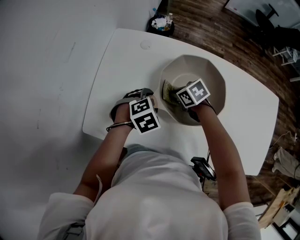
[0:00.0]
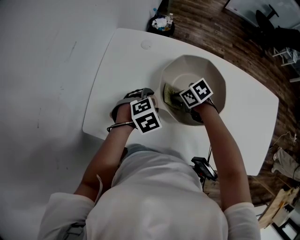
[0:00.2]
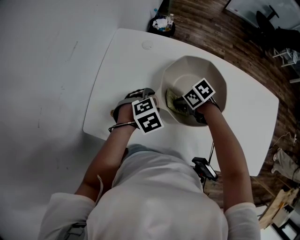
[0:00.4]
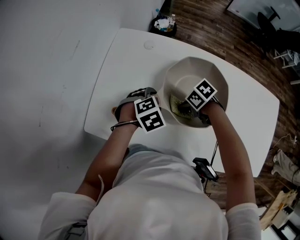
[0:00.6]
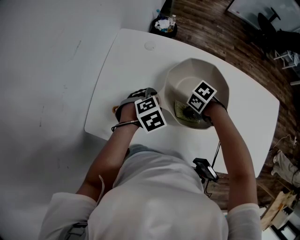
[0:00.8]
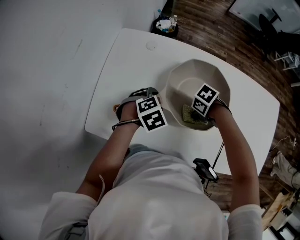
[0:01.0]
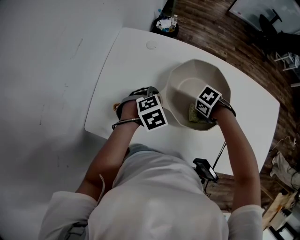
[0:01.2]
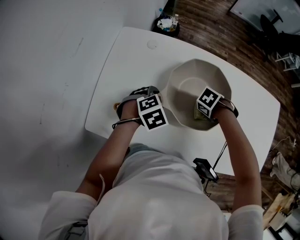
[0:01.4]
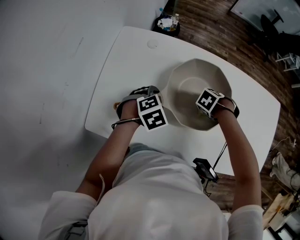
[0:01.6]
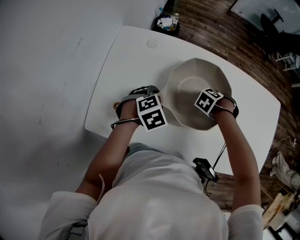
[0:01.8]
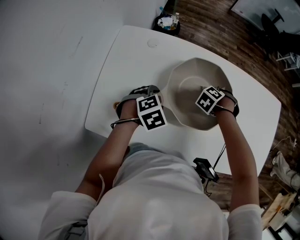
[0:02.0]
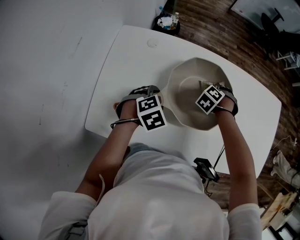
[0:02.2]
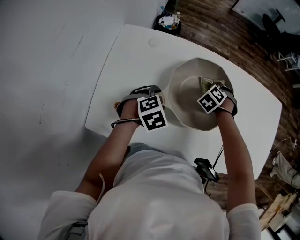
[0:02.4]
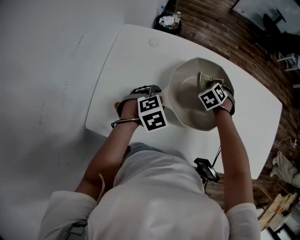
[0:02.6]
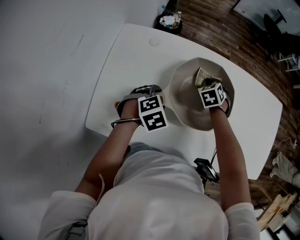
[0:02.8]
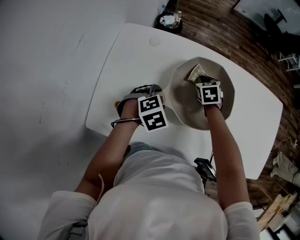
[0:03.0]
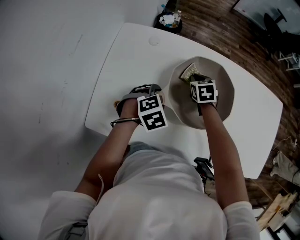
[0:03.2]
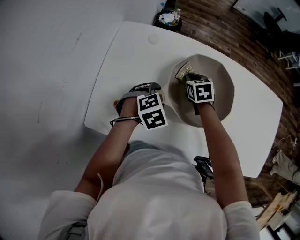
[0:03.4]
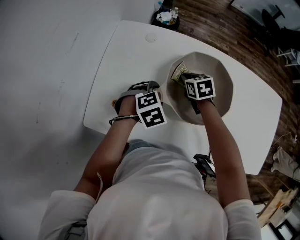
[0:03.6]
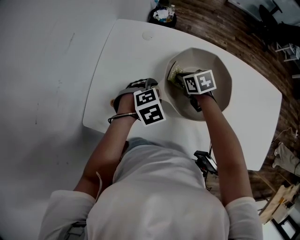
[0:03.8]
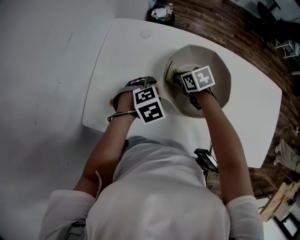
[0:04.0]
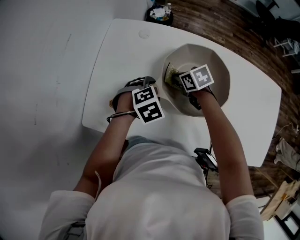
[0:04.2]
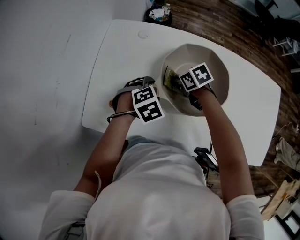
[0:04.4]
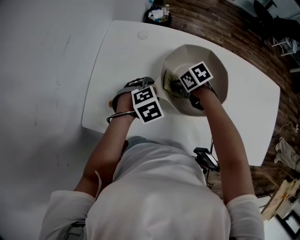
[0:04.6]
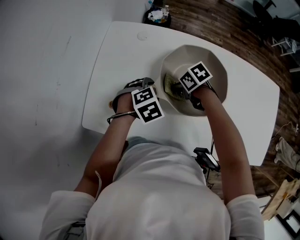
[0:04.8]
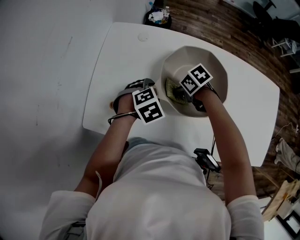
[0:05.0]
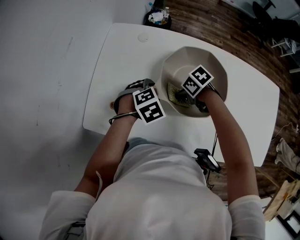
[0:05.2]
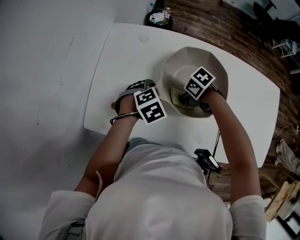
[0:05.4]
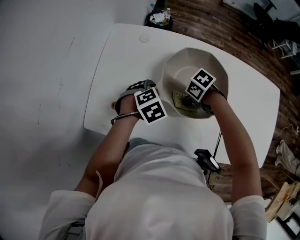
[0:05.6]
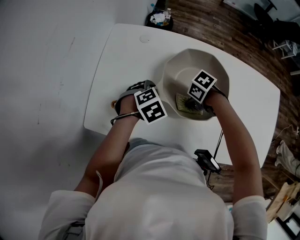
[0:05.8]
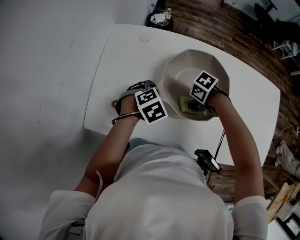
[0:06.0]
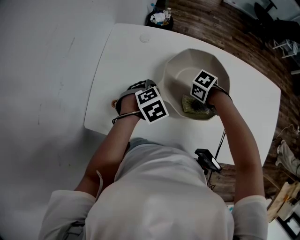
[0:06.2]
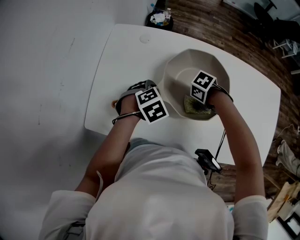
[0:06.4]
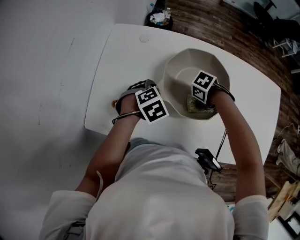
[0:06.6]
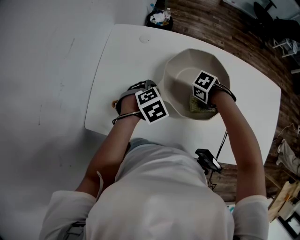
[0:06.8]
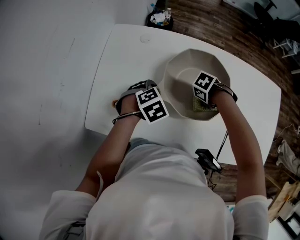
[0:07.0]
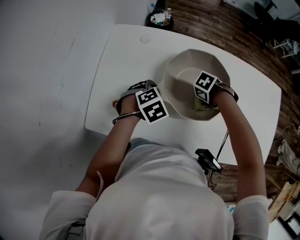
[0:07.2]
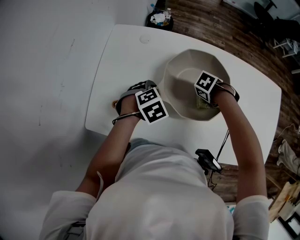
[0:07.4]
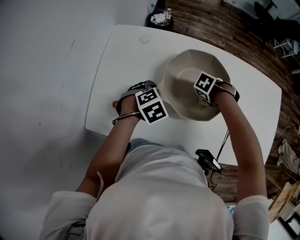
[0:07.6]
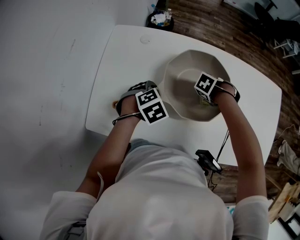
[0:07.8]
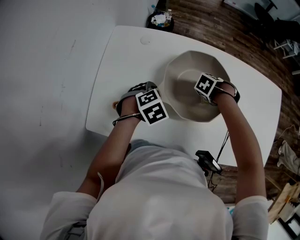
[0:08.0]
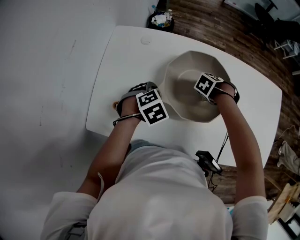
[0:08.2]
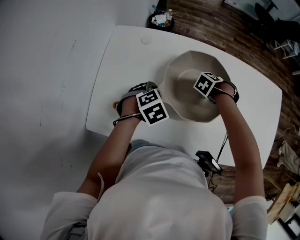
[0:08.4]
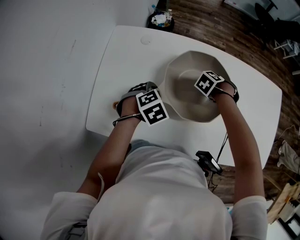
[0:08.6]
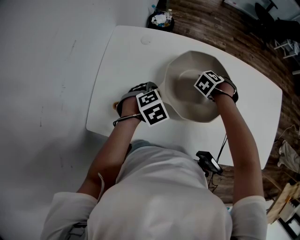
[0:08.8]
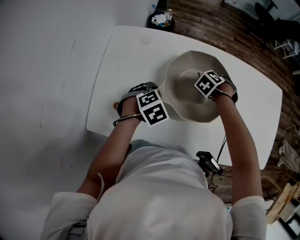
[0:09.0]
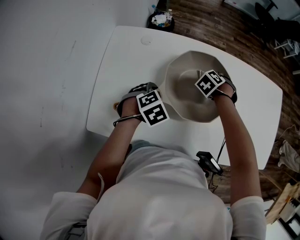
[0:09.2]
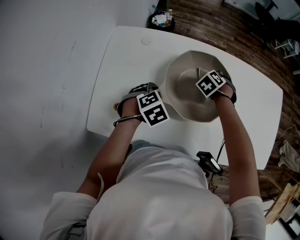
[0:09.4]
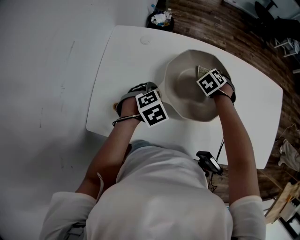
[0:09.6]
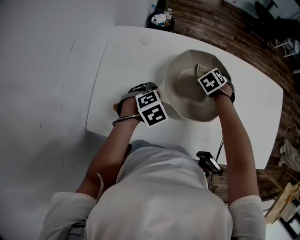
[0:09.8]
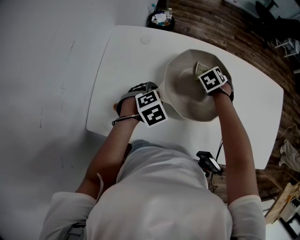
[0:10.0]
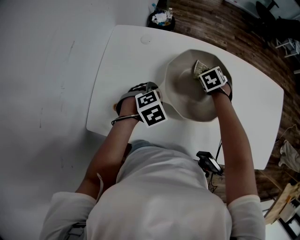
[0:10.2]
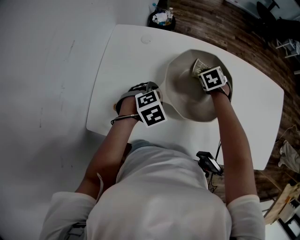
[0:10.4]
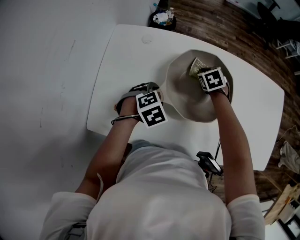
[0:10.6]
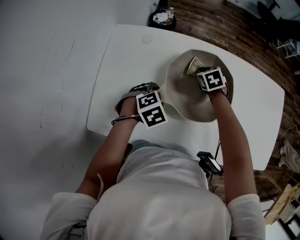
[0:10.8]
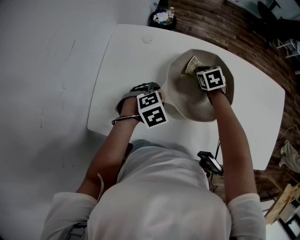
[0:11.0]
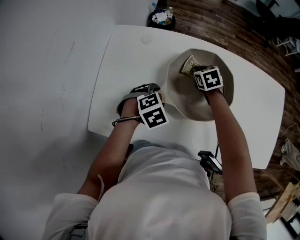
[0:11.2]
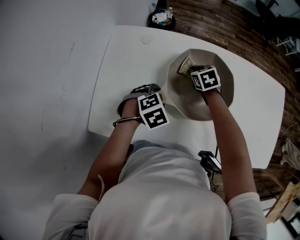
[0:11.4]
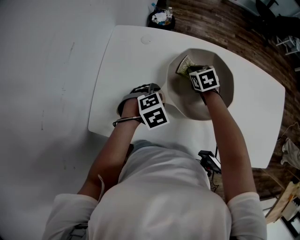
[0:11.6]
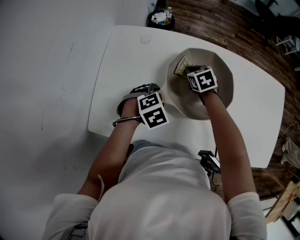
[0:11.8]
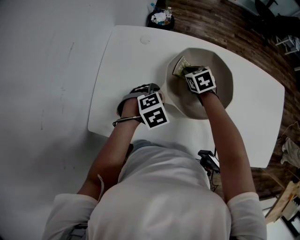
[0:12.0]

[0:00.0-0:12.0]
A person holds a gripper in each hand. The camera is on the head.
0:00.0 to 0:01.6: The right gripper moves about 15 cm, and rotates approximately 50 degrees.
0:01.6 to 0:03.0: The right gripper moves roughly 15 cm, and swivels about 60 degrees.
0:03.0 to 0:04.4: The right gripper shifts by approximately 15 cm, and swivels roughly 40 degrees.
0:04.4 to 0:06.0: The right gripper shifts by some 15 cm, and turns by approximately 40 degrees.
0:06.0 to 0:07.6: The right gripper changes place by roughly 10 cm, and changes its angle by approximately 30 degrees.
0:07.6 to 0:09.0: The right gripper shifts by about 10 cm, and swivels some 30 degrees.
0:09.0 to 0:10.4: The right gripper changes place by about 5 cm, and turns by approximately 30 degrees.
0:10.4 to 0:12.0: The right gripper shifts roughly 10 cm to the left.

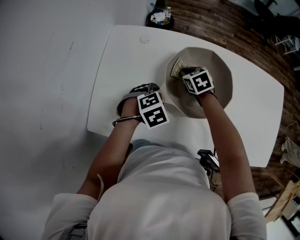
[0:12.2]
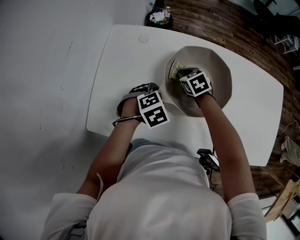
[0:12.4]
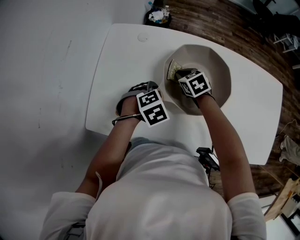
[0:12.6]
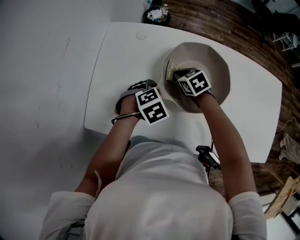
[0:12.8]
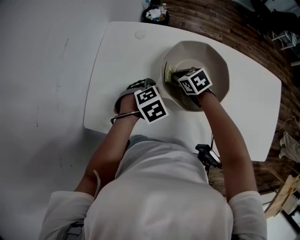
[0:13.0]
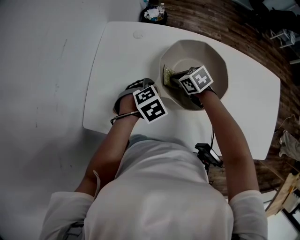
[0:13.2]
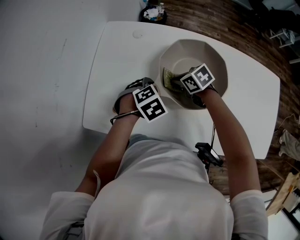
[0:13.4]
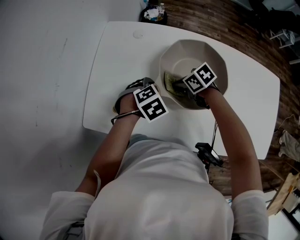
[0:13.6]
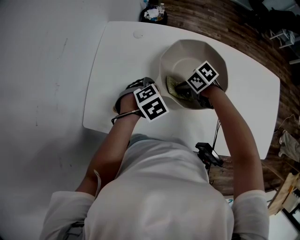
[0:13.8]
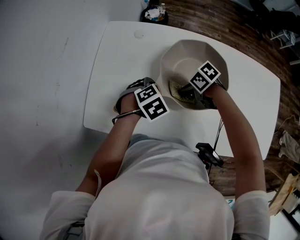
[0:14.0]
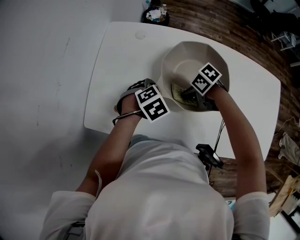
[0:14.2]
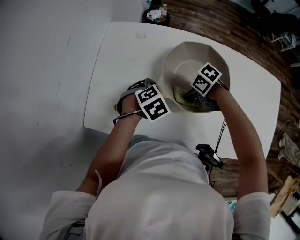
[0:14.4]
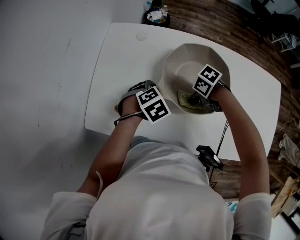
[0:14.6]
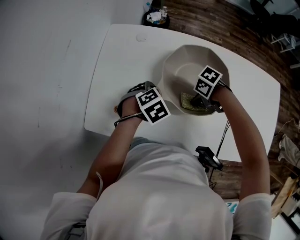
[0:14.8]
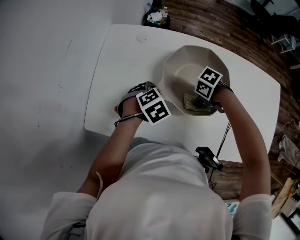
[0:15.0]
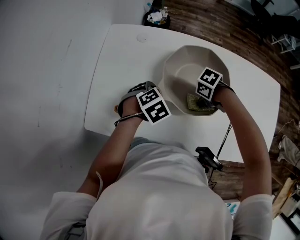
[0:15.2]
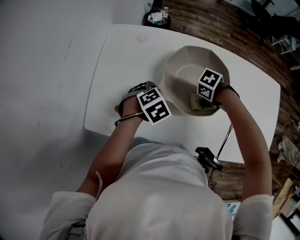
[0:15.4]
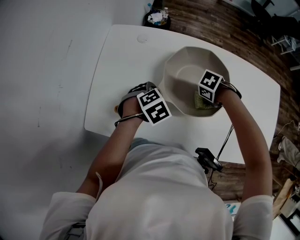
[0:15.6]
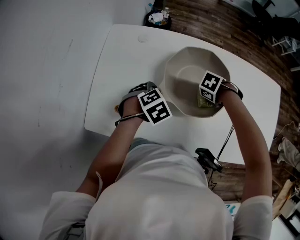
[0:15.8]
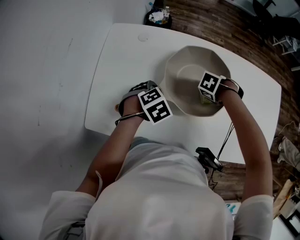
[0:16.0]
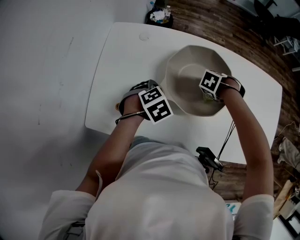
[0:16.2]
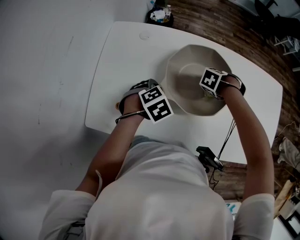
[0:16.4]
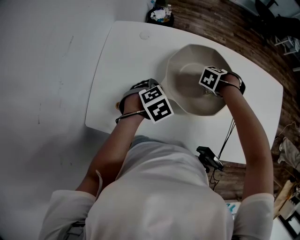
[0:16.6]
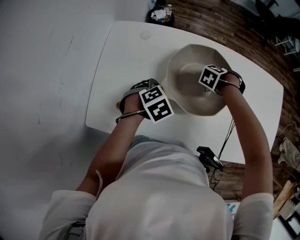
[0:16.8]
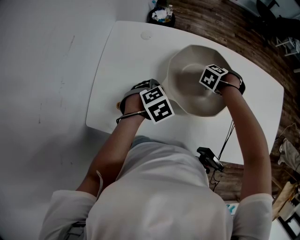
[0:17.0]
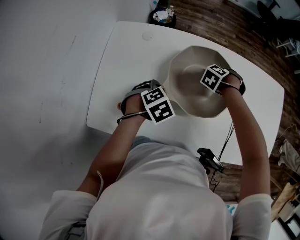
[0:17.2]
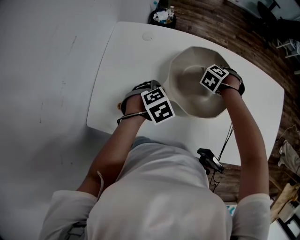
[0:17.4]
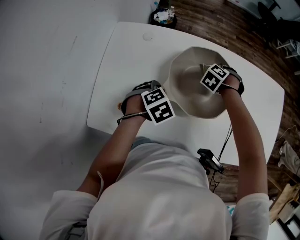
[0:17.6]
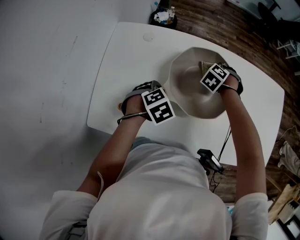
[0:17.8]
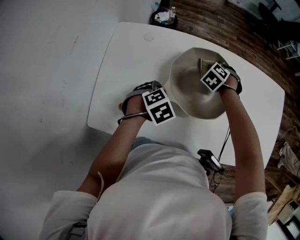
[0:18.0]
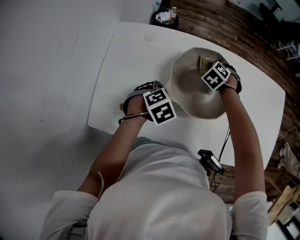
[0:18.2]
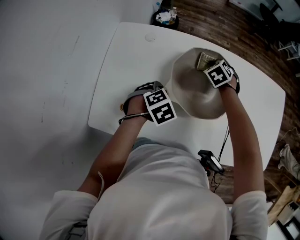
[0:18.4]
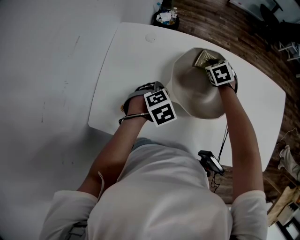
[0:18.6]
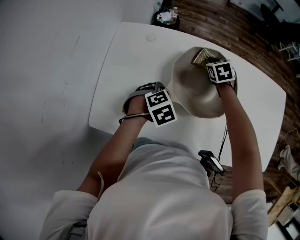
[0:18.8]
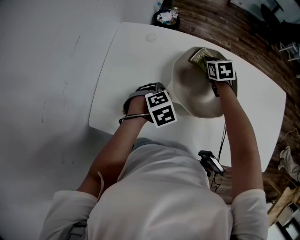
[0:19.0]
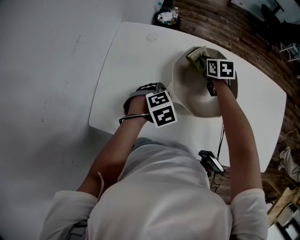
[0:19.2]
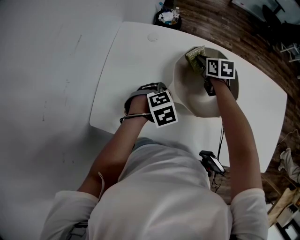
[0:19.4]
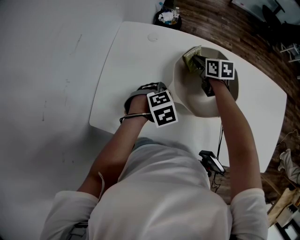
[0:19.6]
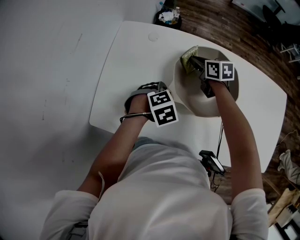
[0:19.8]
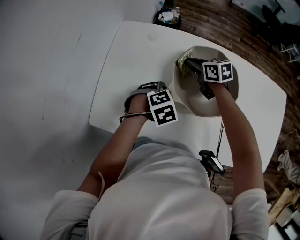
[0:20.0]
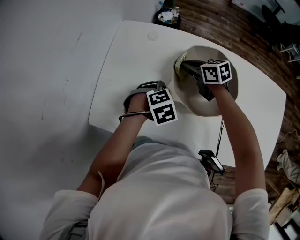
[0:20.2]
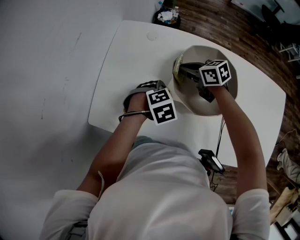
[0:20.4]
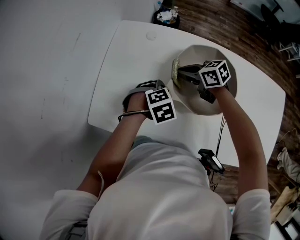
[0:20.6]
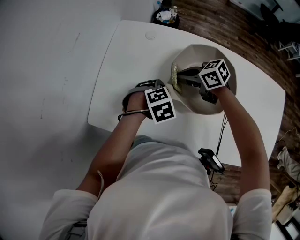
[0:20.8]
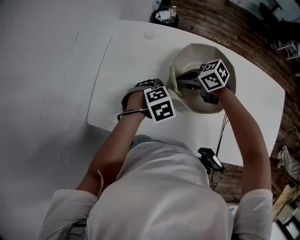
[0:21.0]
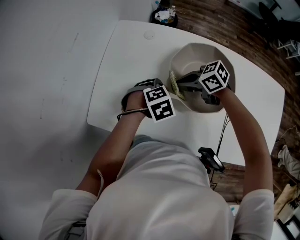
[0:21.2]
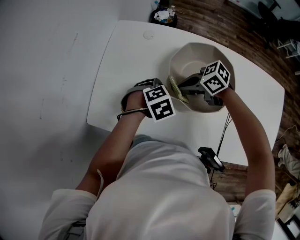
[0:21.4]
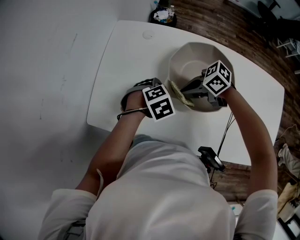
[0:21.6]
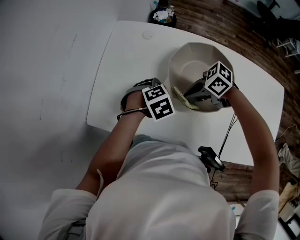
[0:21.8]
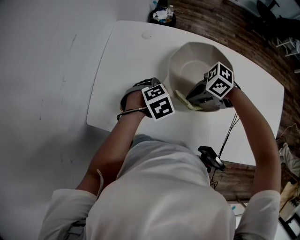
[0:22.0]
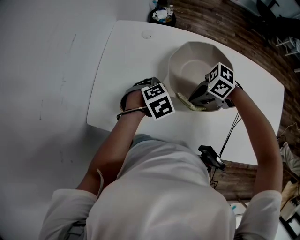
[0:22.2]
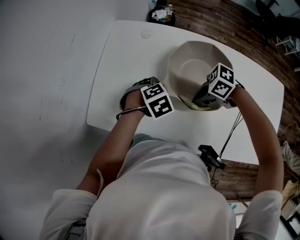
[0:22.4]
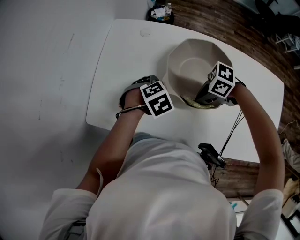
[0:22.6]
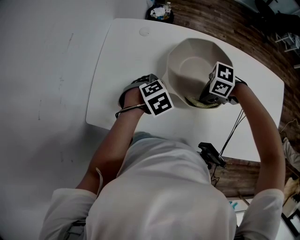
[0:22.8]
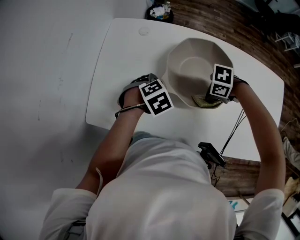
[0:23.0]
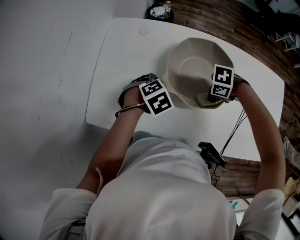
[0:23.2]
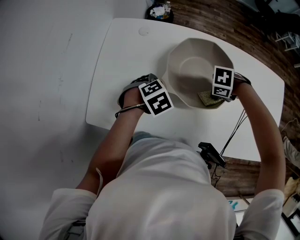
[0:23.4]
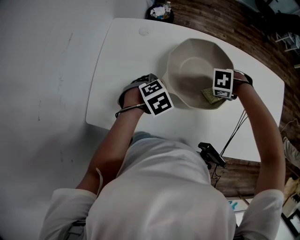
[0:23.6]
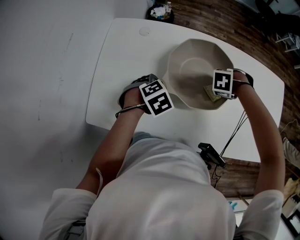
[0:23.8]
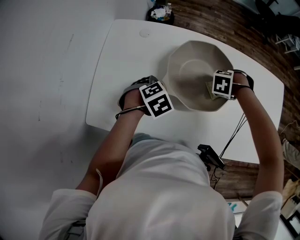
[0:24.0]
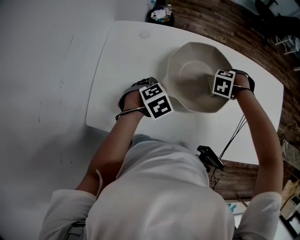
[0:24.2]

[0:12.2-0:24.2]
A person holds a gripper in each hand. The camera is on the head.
0:12.2 to 0:13.8: The right gripper changes place by some 10 cm, and turns by approximately 40 degrees.
0:13.8 to 0:15.2: The right gripper shifts by roughly 10 cm, and rotates roughly 30 degrees.
0:15.2 to 0:16.6: The right gripper moves roughly 10 cm, and turns by approximately 40 degrees.
0:16.6 to 0:18.2: The right gripper shifts by roughly 10 cm, and swivels about 30 degrees.
0:18.2 to 0:19.8: The right gripper moves some 10 cm, and rotates roughly 70 degrees.
0:19.8 to 0:21.2: The right gripper shifts by some 15 cm, and swivels approximately 40 degrees.
0:21.2 to 0:22.6: The right gripper moves roughly 15 cm, and swivels some 30 degrees.
0:22.6 to 0:24.2: The right gripper moves some 15 cm, and tips its fingers downward by roughly 30 degrees.
